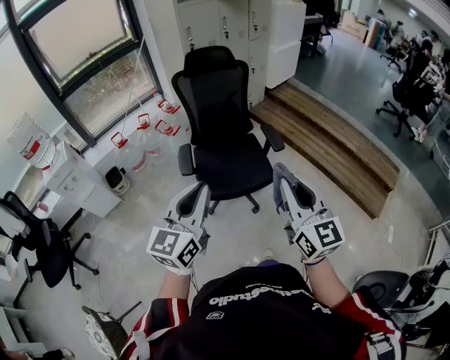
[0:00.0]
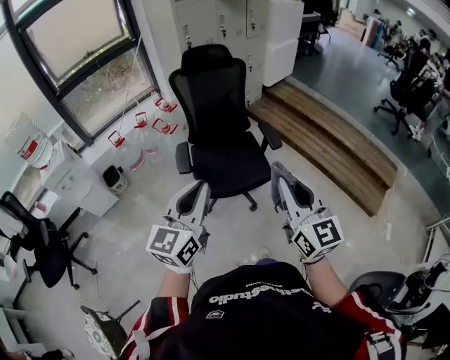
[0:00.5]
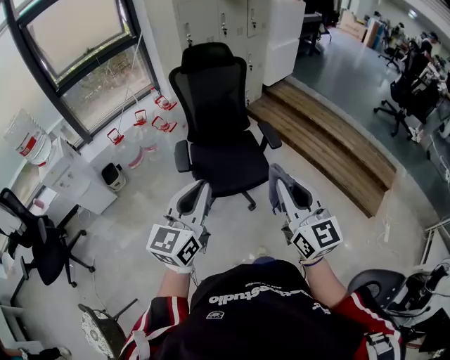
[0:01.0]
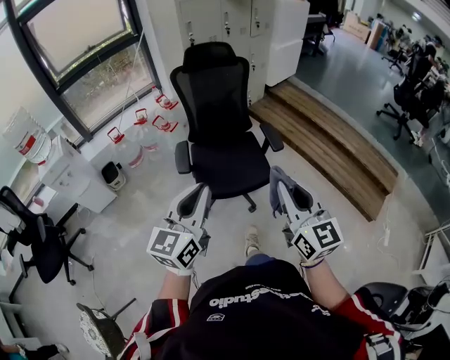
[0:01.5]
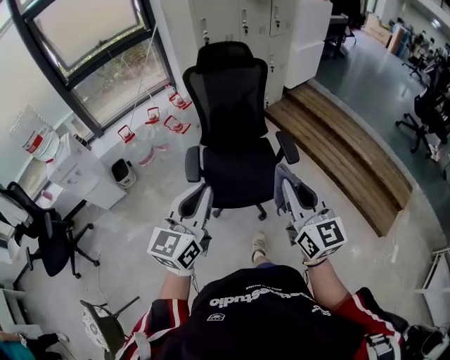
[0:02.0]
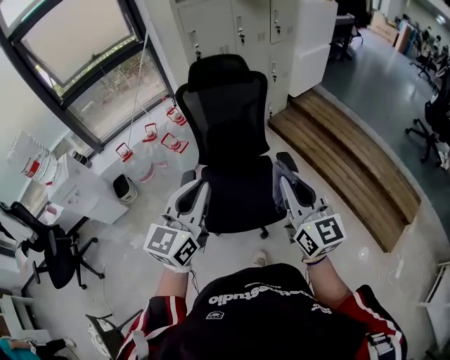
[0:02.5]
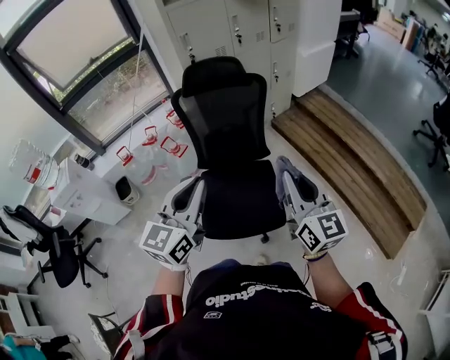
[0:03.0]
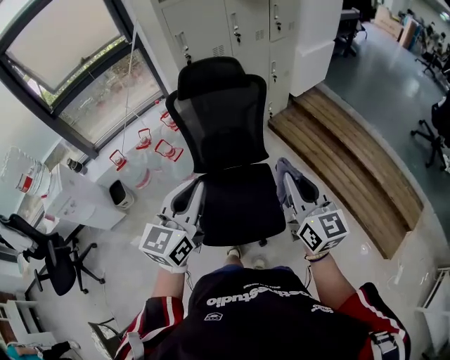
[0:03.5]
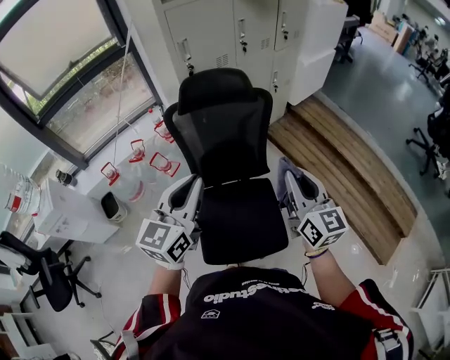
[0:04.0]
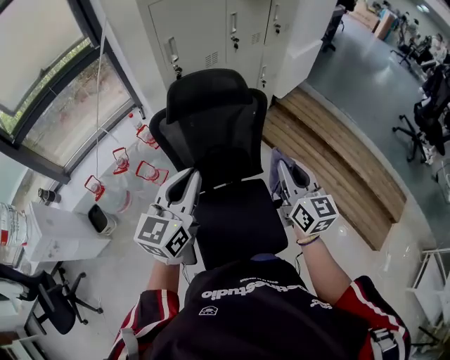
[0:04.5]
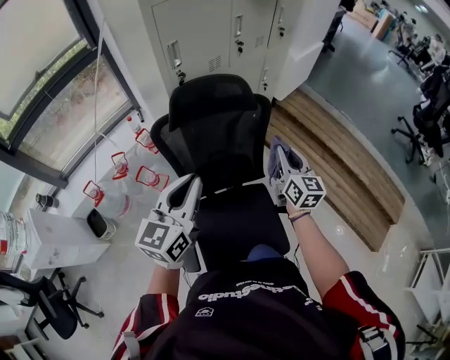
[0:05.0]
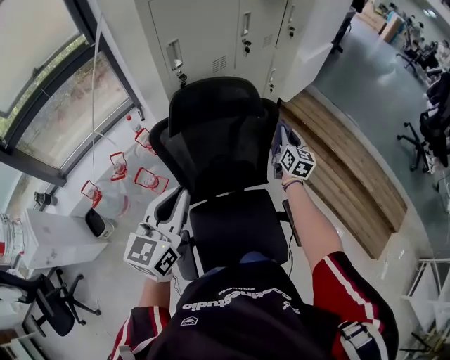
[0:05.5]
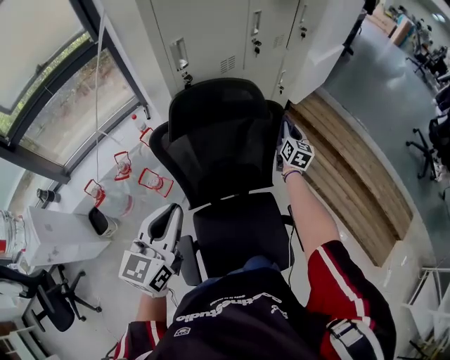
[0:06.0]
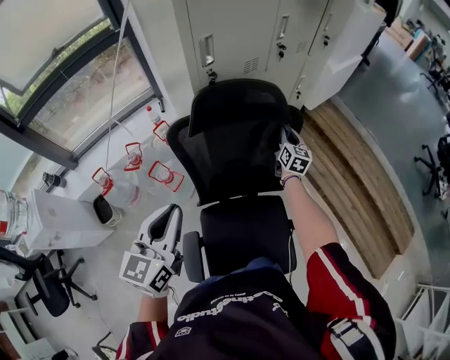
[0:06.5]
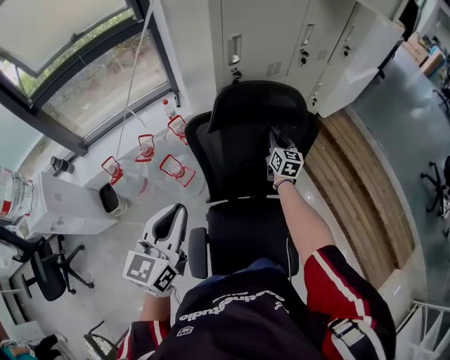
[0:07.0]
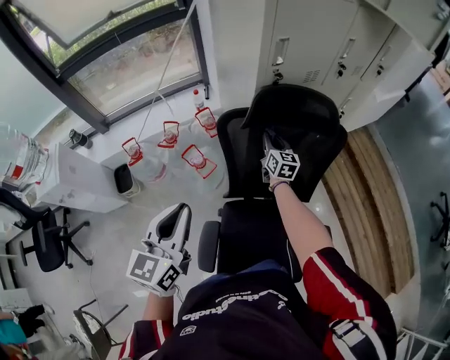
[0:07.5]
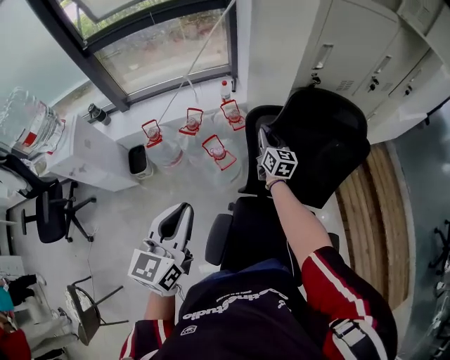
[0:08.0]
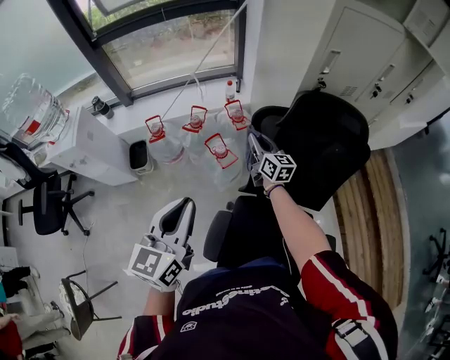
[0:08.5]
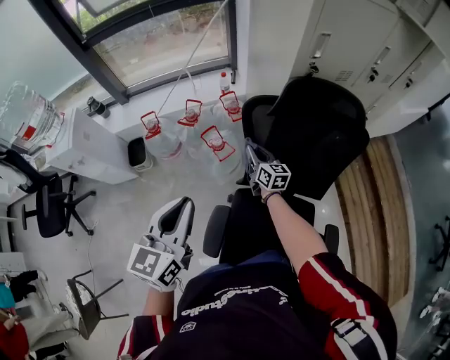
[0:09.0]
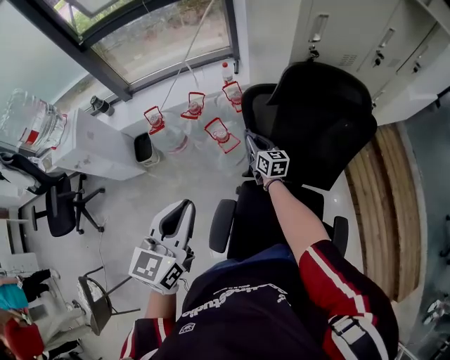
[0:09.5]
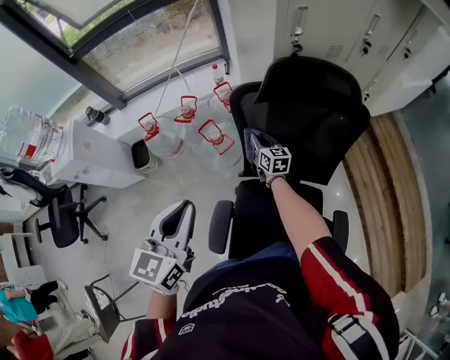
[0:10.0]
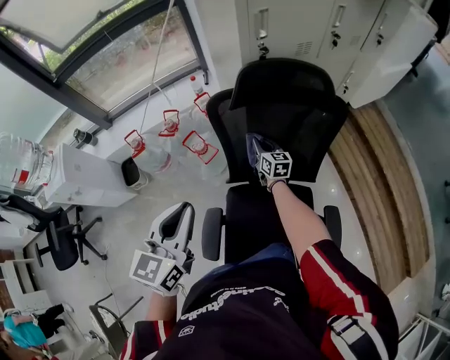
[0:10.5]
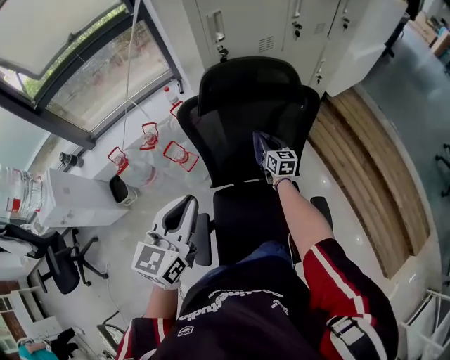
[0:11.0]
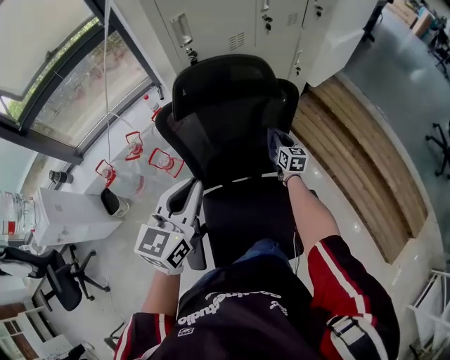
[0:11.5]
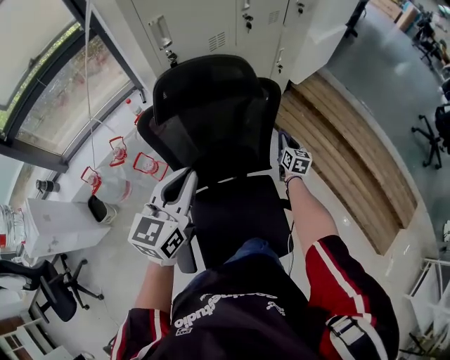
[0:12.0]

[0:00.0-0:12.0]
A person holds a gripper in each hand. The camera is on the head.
0:00.0 to 0:02.0: The two grippers go roughly 15 cm forward.
0:02.0 to 0:04.0: The pair of grippers is taken forward, approximately 50 cm.
0:04.0 to 0:06.0: The left gripper shifts approximately 25 cm forward, to the left and downward; the right gripper goes some 50 cm forward and downward, and changes its angle by some 30 degrees.
0:06.0 to 0:08.0: The left gripper changes place by approximately 20 cm, and turns by some 30 degrees. Meanwhile the right gripper changes place by about 50 cm, and turns by some 40 degrees.
0:08.0 to 0:10.0: The right gripper travels downward and backward by roughly 10 cm; the left gripper moves to the right, some 5 cm.
0:10.0 to 0:12.0: The left gripper shifts by some 25 cm, and changes its angle by about 30 degrees. Meanwhile the right gripper changes place by about 50 cm, and swivels approximately 40 degrees.

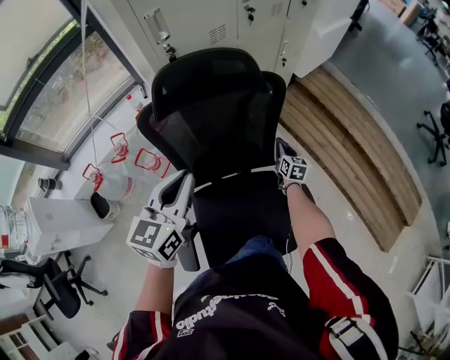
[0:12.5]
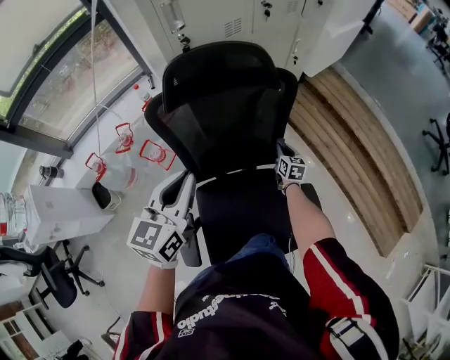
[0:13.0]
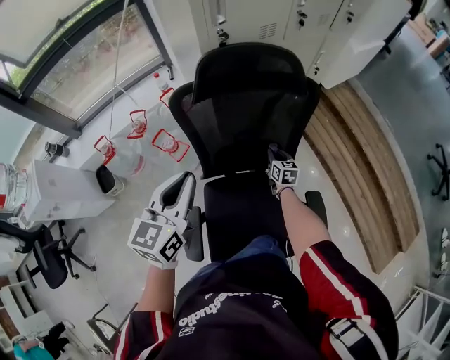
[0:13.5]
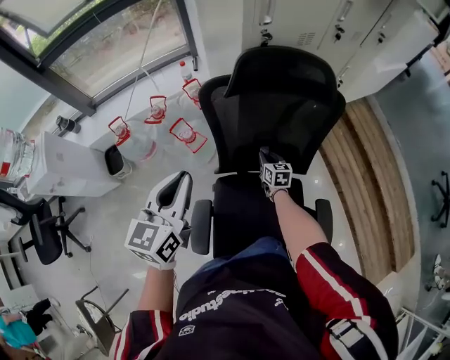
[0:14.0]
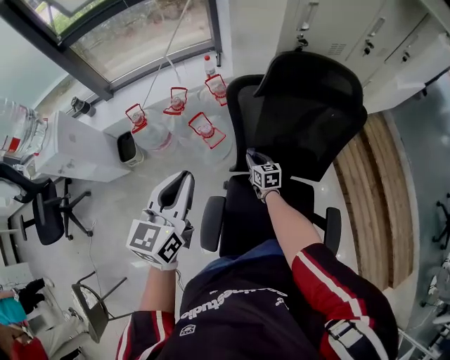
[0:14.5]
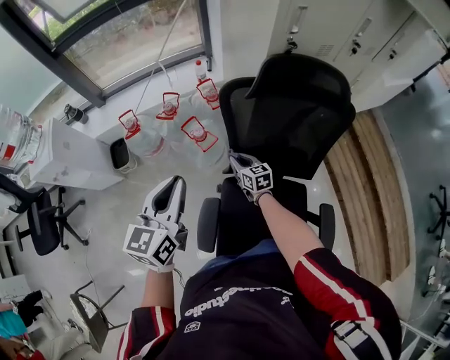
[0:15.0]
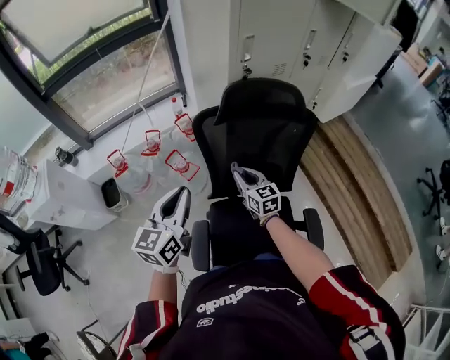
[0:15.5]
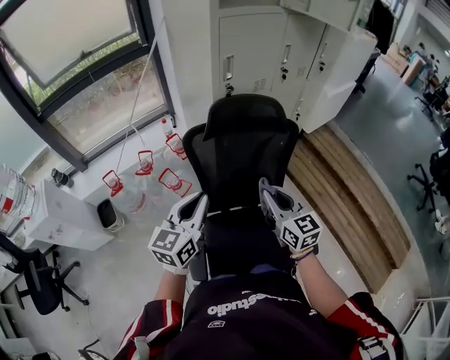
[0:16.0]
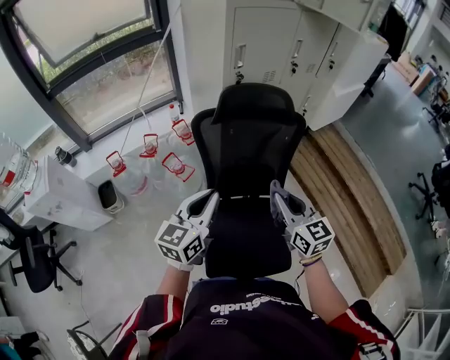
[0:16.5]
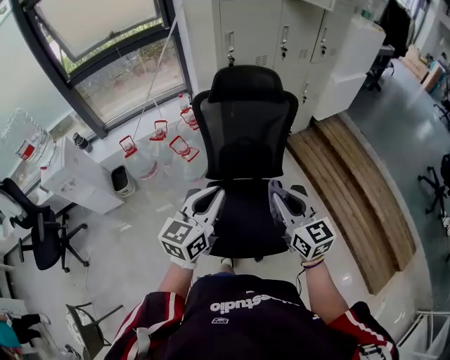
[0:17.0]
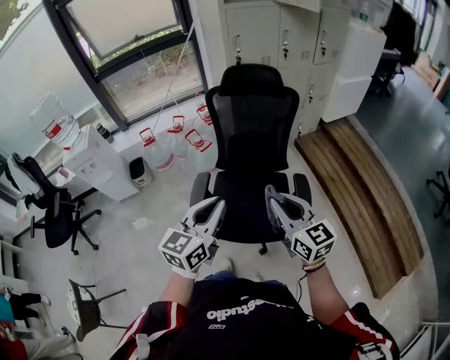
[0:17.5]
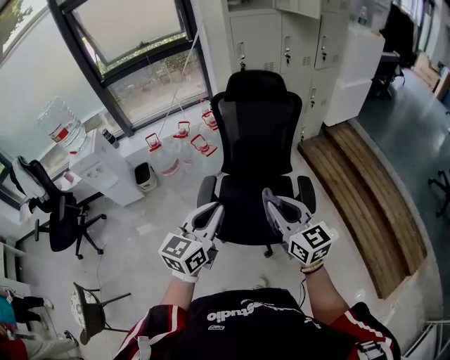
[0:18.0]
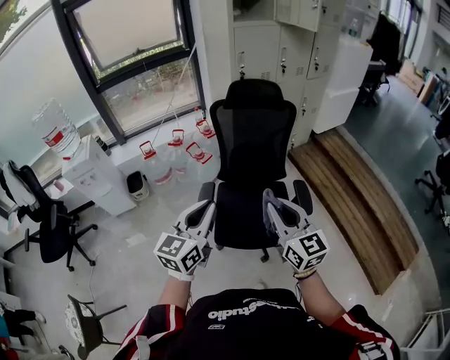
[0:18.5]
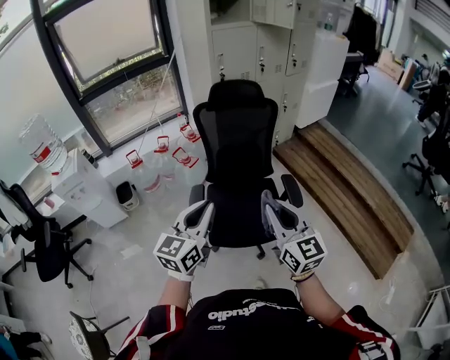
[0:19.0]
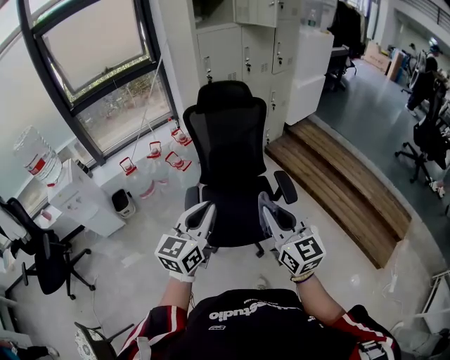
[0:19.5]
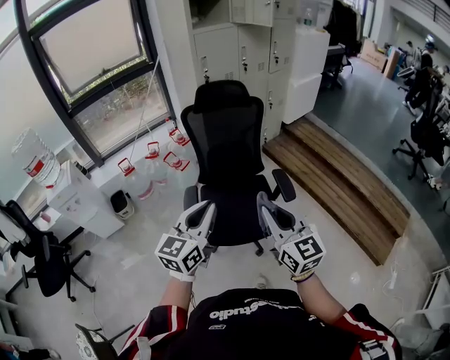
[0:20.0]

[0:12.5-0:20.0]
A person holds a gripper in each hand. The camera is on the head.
0:12.5 to 0:14.5: The left gripper changes place by some 25 cm, and swivels some 30 degrees. Meanwhile the right gripper moves approximately 40 cm, and changes its angle by about 40 degrees.
0:14.5 to 0:16.5: The right gripper travels upward and backward by roughly 50 cm, and changes its angle by some 30 degrees. The left gripper shifts some 15 cm to the right, backward and upward, and turns by about 20 degrees.
0:16.5 to 0:18.0: Both grippers move backward, approximately 40 cm.
0:18.0 to 0:20.0: The left gripper goes about 5 cm backward. The right gripper moves backward, roughly 10 cm, and swivels about 20 degrees.

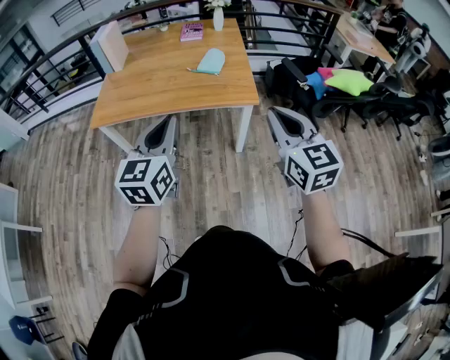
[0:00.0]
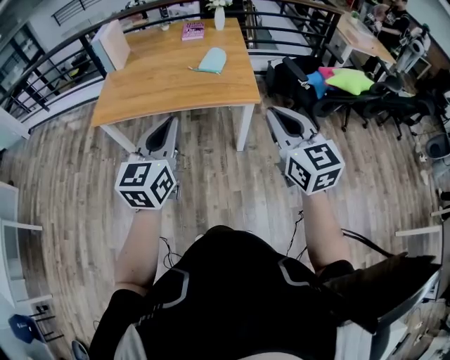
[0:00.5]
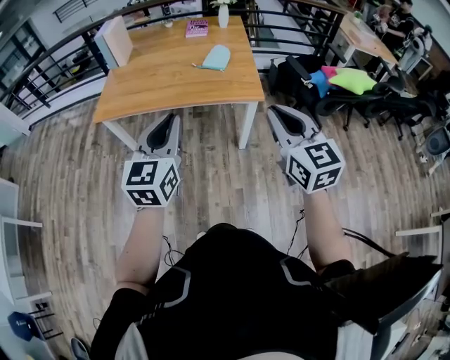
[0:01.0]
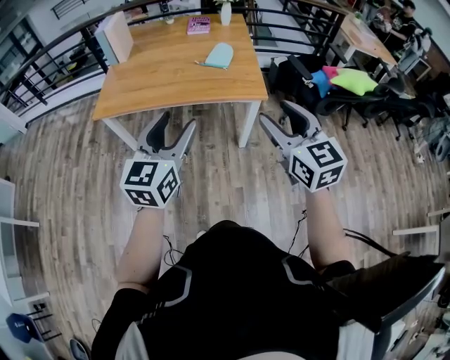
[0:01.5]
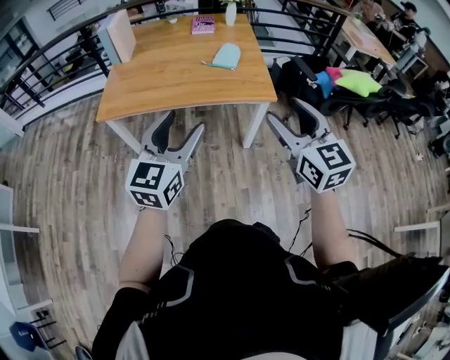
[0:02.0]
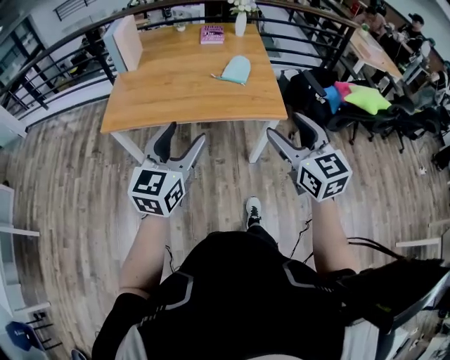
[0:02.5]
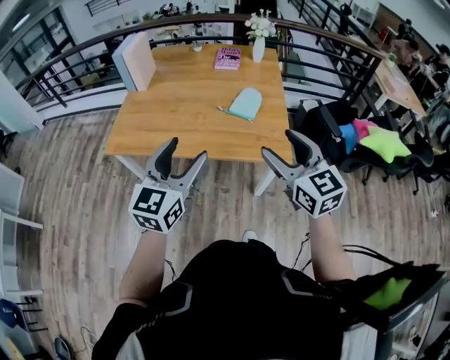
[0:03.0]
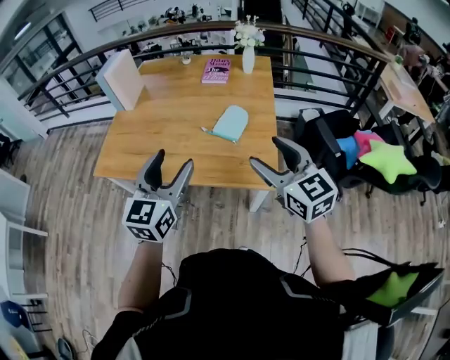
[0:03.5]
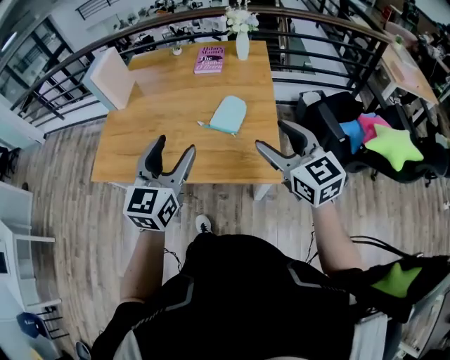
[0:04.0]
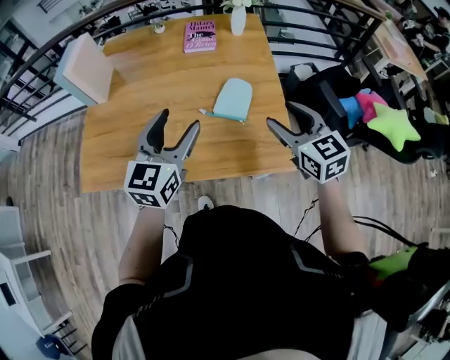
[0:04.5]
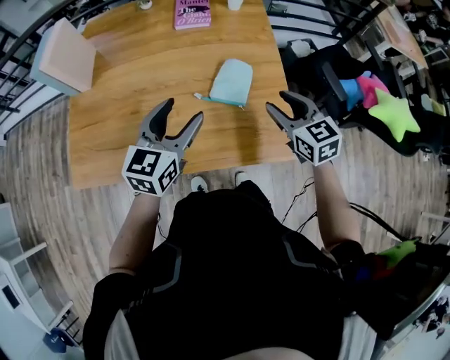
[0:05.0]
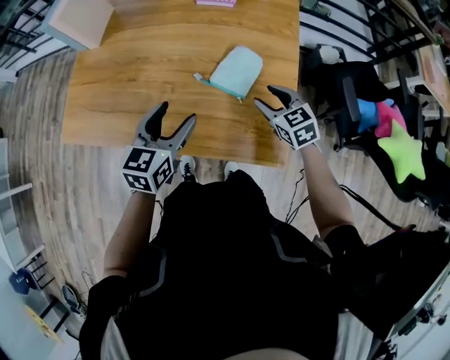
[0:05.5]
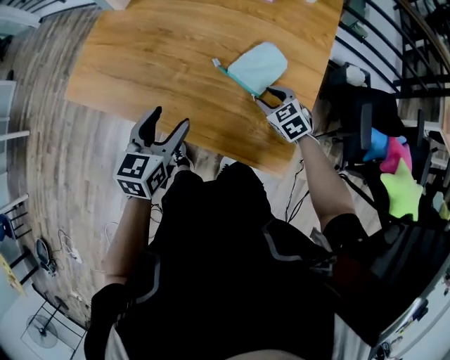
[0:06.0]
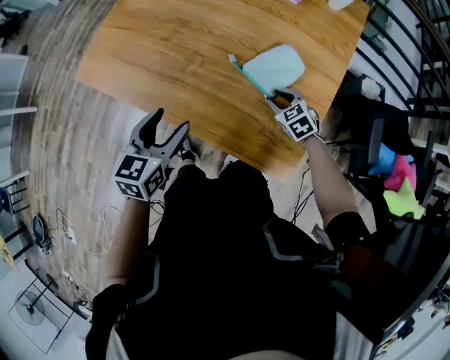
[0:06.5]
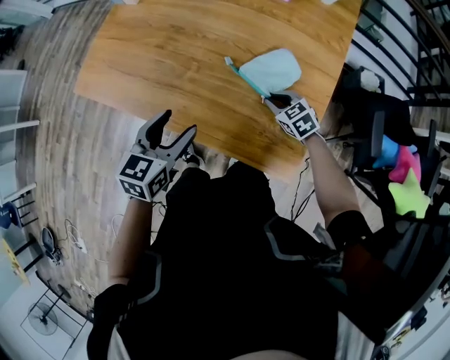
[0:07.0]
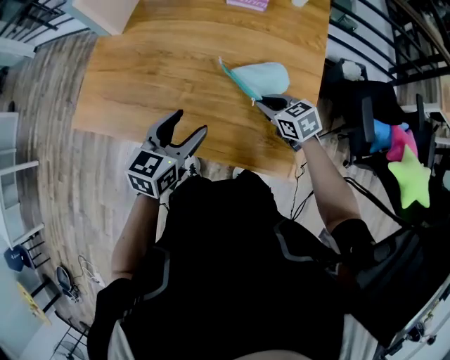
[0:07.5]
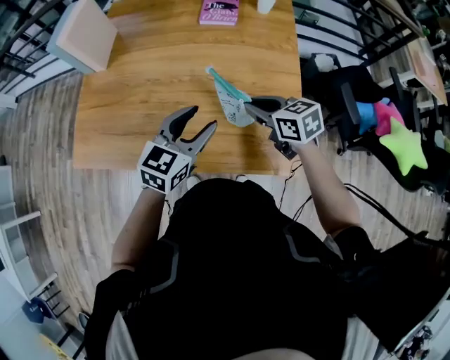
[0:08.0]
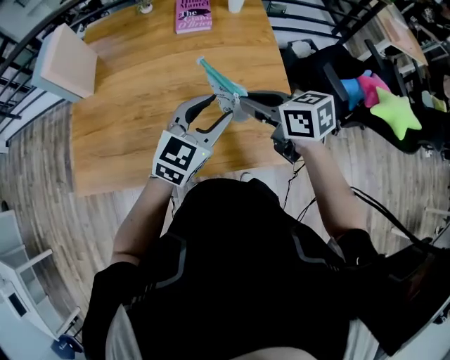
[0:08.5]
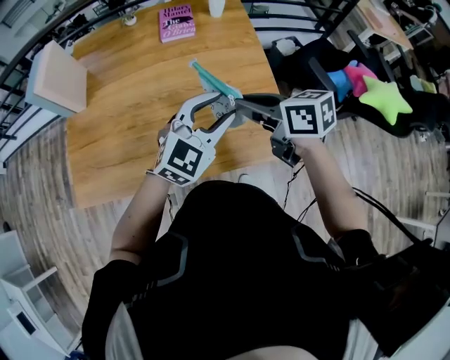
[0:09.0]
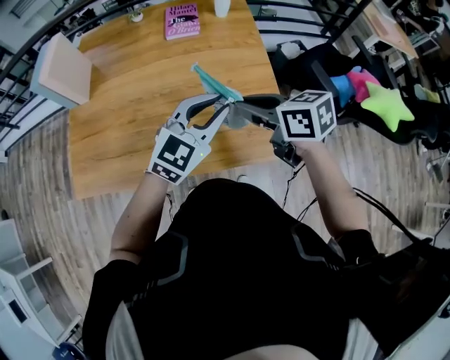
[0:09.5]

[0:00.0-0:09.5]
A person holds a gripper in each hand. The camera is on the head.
0:00.0 to 0:02.0: Both grippers move to the left, about 10 cm. The left gripper opens up; the right gripper opens up.
0:02.0 to 0:04.0: The left gripper travels forward and to the right by some 35 cm. Meanwhile the right gripper shifts approximately 35 cm forward.
0:04.0 to 0:05.5: Both grippers move downward and forward, some 25 cm. The left gripper rotates approximately 20 degrees; the right gripper changes its angle by approximately 30 degrees.
0:05.5 to 0:07.5: The right gripper goes about 5 cm to the left, travels downward and back again, roughly 15 cm each way, and closes its fingers.
0:07.5 to 0:09.5: The left gripper travels upward and to the right by some 15 cm, rotates approximately 50 degrees, and closes its fingers; the right gripper shifts approximately 20 cm upward, and changes its angle by roughly 30 degrees.
